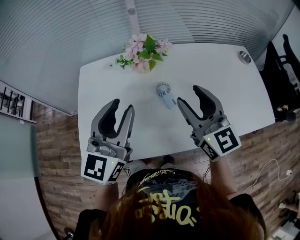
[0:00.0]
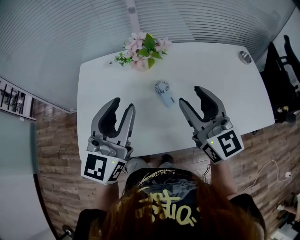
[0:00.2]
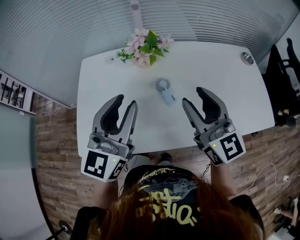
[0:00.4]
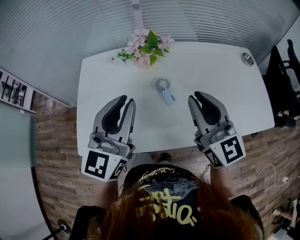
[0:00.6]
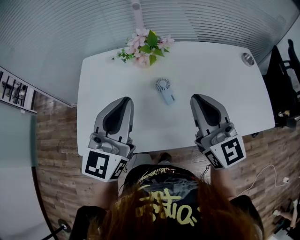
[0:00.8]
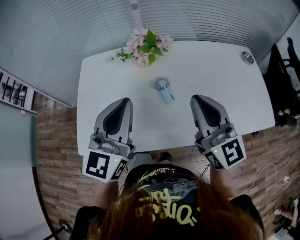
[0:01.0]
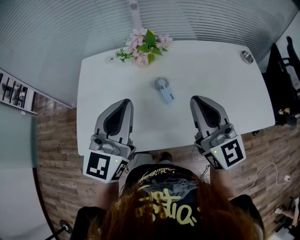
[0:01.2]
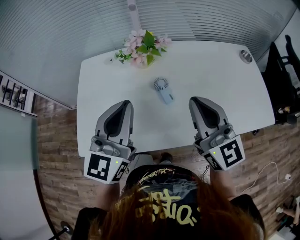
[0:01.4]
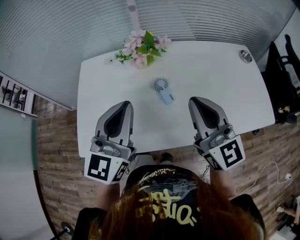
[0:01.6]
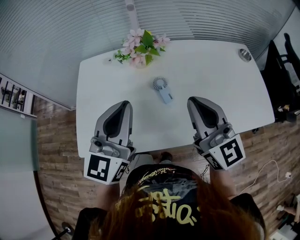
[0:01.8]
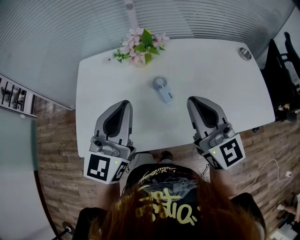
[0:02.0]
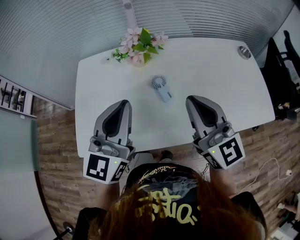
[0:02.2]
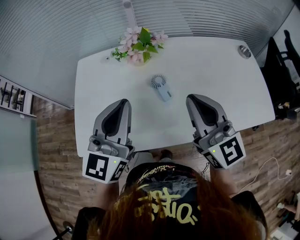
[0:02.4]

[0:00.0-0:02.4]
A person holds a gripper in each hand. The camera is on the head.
0:00.0 to 0:01.2: The right gripper changes place by roughly 5 cm, and closes its fingers.
0:01.2 to 0:02.4: Neither gripper changes place.

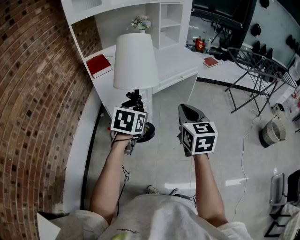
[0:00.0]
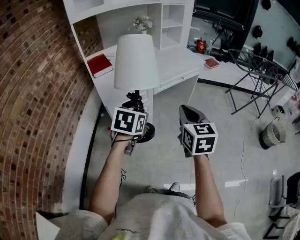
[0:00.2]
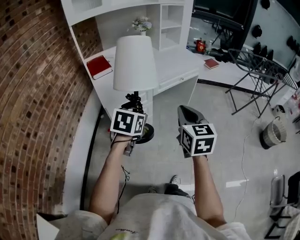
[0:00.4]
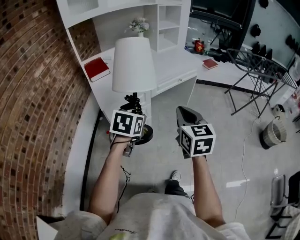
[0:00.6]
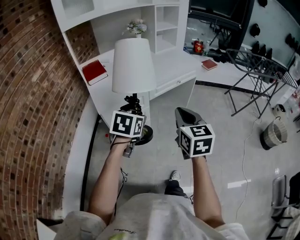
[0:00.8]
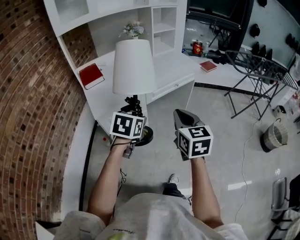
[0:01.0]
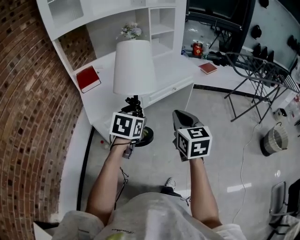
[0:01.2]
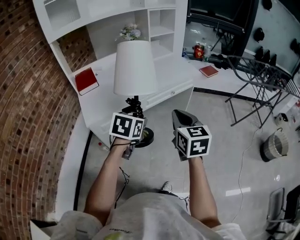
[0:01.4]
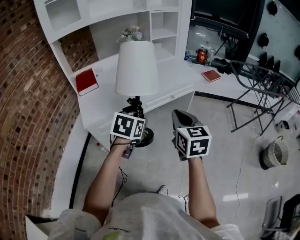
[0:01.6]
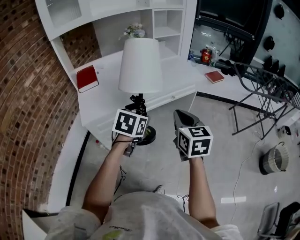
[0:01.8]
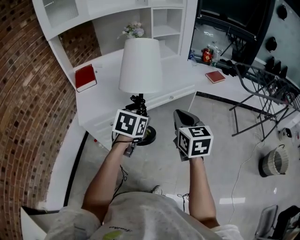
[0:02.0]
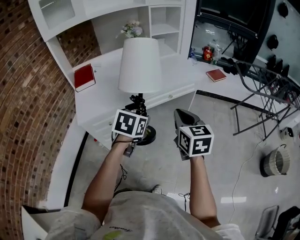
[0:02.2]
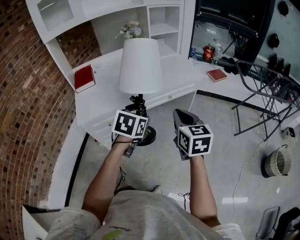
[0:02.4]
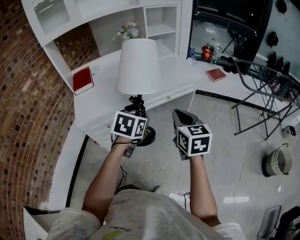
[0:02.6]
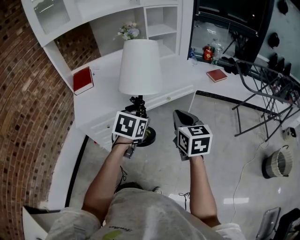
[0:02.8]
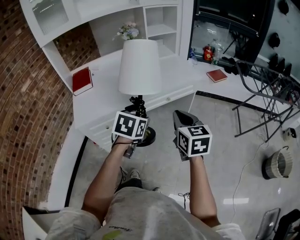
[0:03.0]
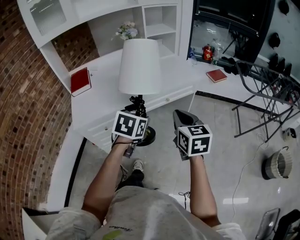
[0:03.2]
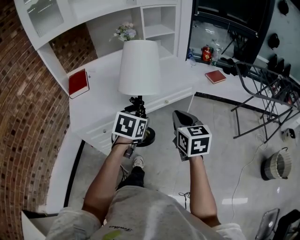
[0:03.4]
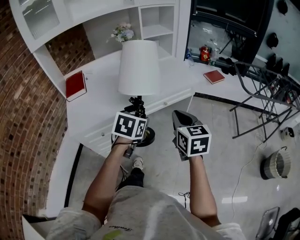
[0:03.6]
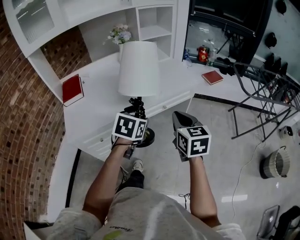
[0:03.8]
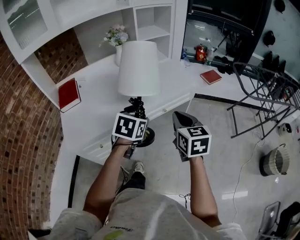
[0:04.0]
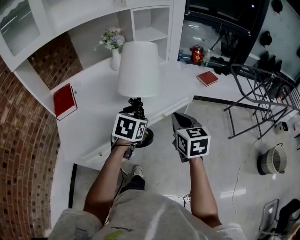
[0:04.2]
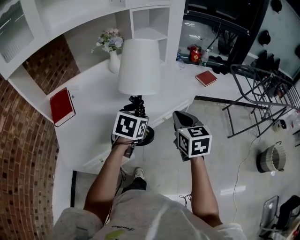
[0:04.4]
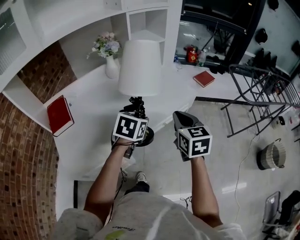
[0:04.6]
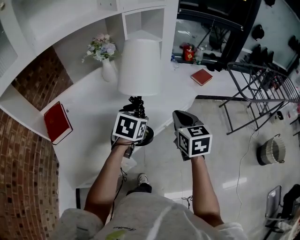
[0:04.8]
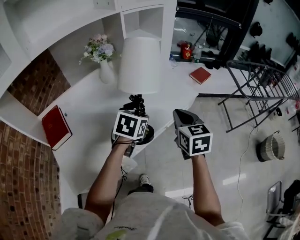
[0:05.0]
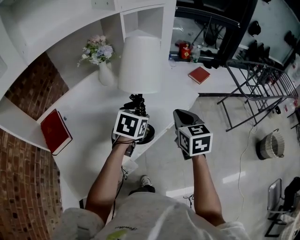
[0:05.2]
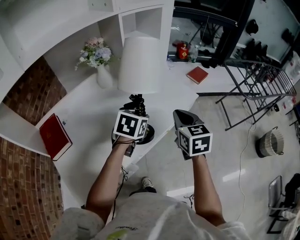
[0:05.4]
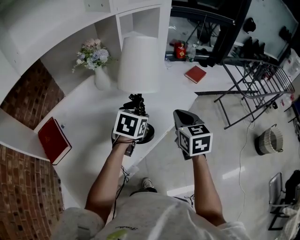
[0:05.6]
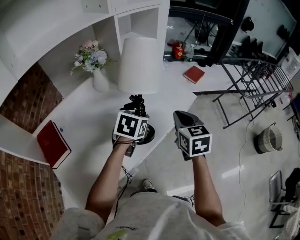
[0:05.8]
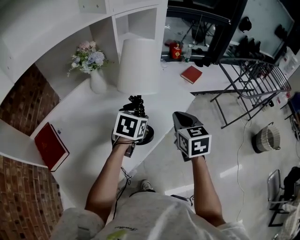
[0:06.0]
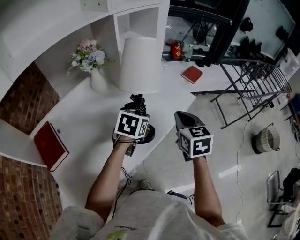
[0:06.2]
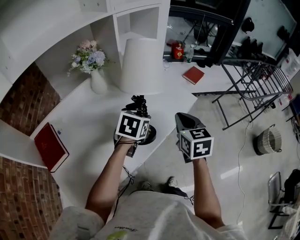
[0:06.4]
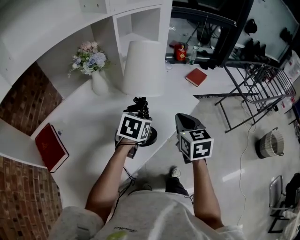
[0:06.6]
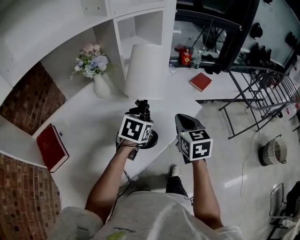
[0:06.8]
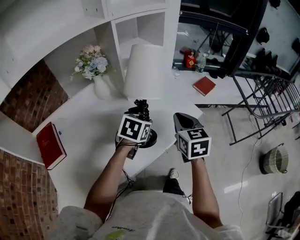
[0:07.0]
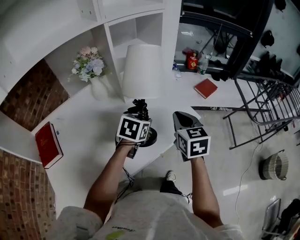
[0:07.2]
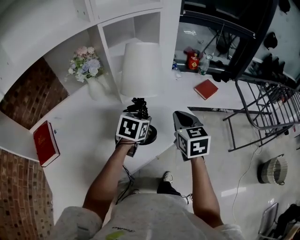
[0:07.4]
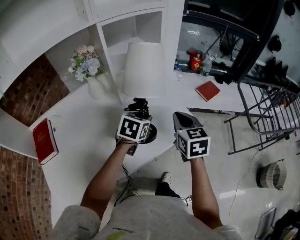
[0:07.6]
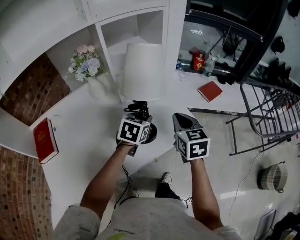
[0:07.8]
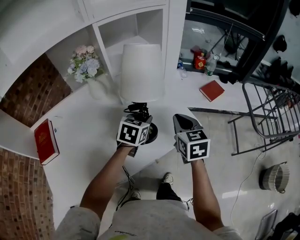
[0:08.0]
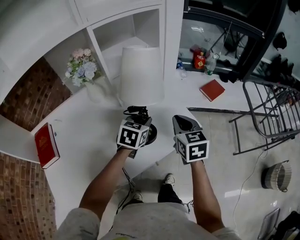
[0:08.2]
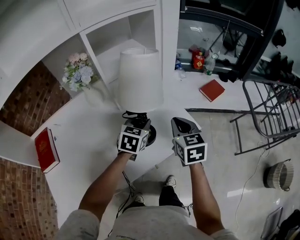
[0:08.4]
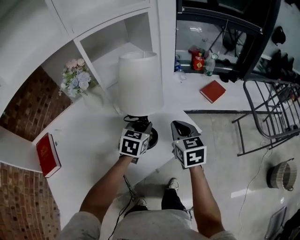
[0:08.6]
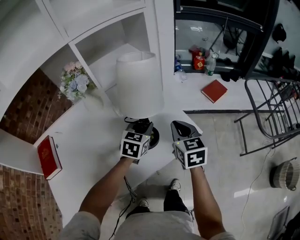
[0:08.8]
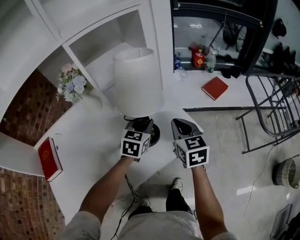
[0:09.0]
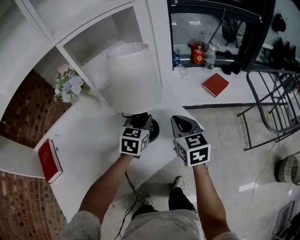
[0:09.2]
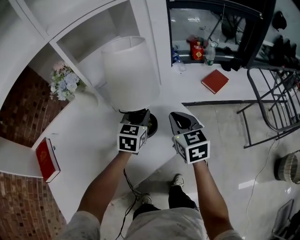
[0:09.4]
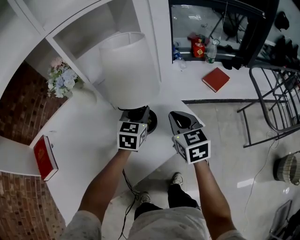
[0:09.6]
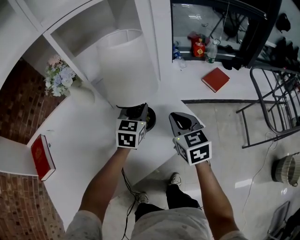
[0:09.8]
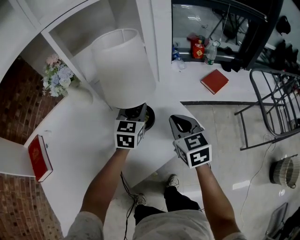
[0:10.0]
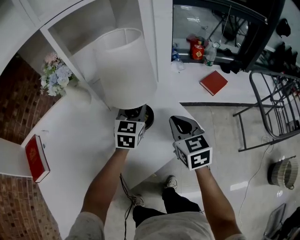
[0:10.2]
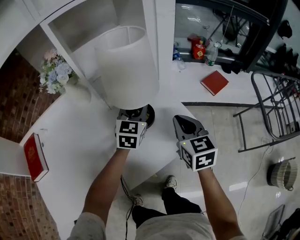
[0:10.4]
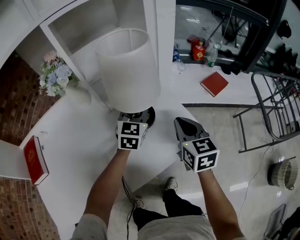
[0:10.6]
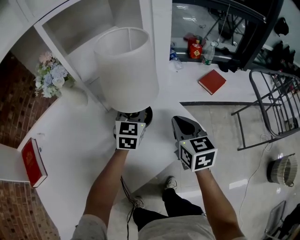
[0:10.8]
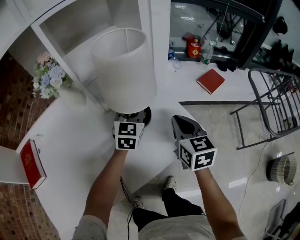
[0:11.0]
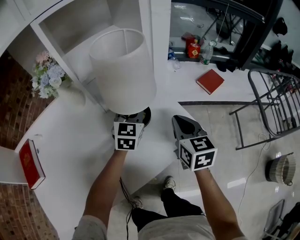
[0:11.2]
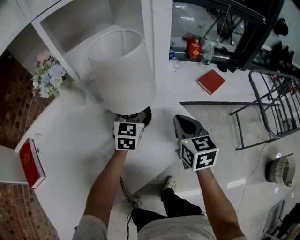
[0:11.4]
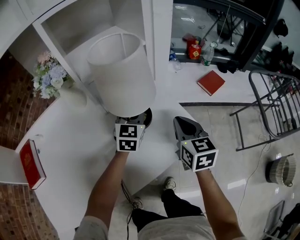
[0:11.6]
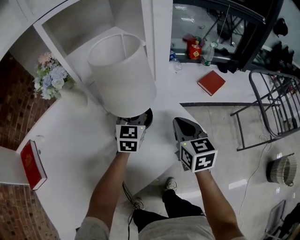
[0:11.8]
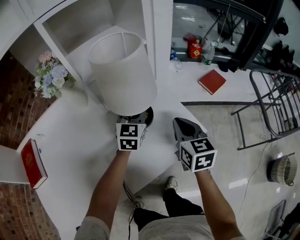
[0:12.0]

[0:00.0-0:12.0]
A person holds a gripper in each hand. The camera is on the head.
0:00.0 to 0:01.6: The grippers both shift forward and to the right by some 20 cm.
0:01.6 to 0:03.0: Both grippers move to the right and forward, about 10 cm.
0:03.0 to 0:04.4: The grippers both shift forward by roughly 20 cm.
0:04.4 to 0:06.0: The two grippers go some 15 cm forward.
0:06.0 to 0:07.6: The right gripper is displaced forward by approximately 15 cm. Meanwhile the left gripper goes approximately 15 cm forward and to the right.
0:07.6 to 0:09.0: The grippers both shift forward by roughly 5 cm.
0:09.0 to 0:10.4: The left gripper is displaced forward by roughly 5 cm.
0:10.4 to 0:12.0: There are only small adjustments of the grippers.

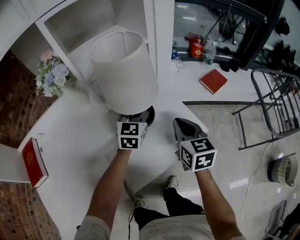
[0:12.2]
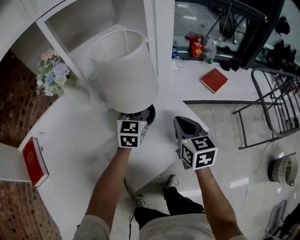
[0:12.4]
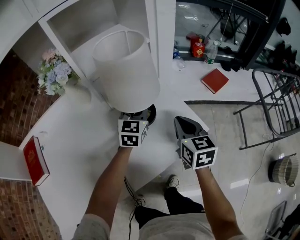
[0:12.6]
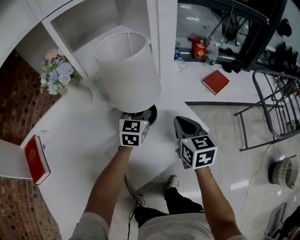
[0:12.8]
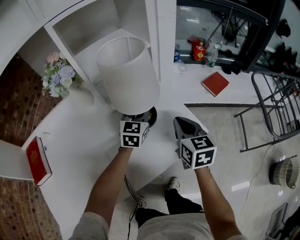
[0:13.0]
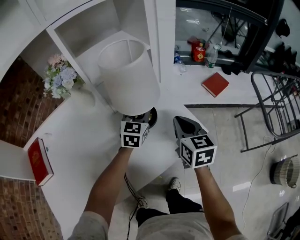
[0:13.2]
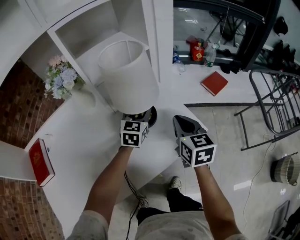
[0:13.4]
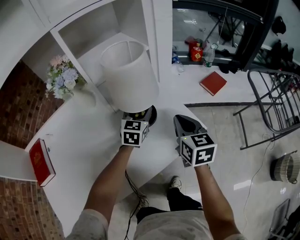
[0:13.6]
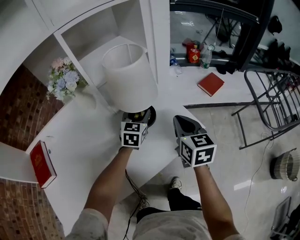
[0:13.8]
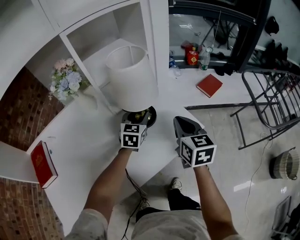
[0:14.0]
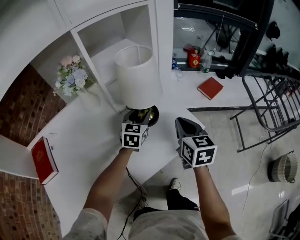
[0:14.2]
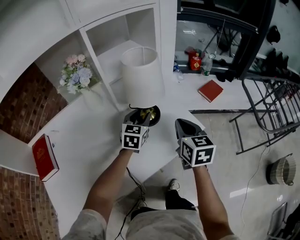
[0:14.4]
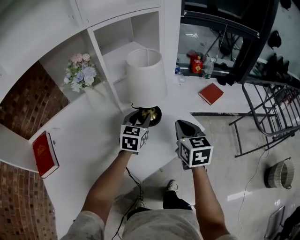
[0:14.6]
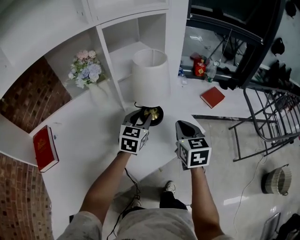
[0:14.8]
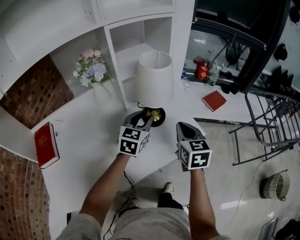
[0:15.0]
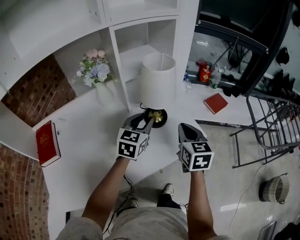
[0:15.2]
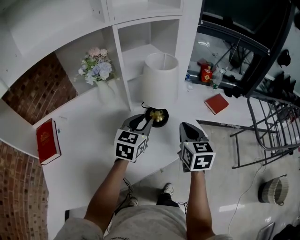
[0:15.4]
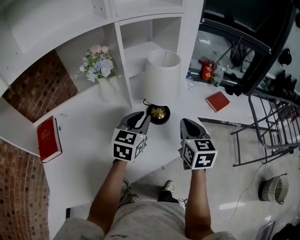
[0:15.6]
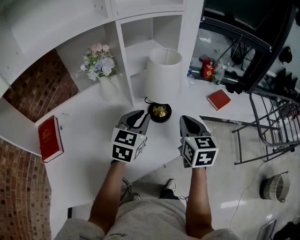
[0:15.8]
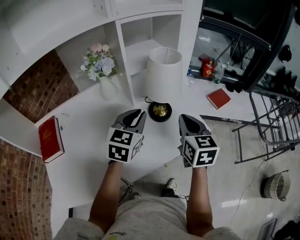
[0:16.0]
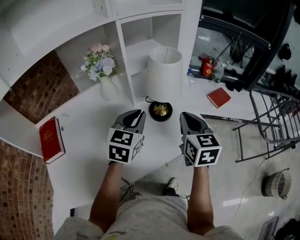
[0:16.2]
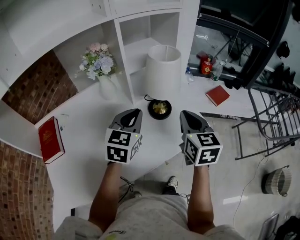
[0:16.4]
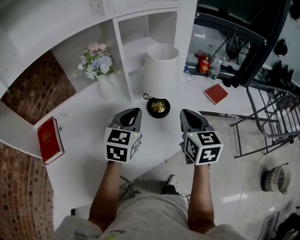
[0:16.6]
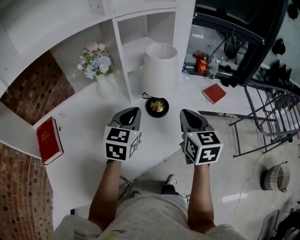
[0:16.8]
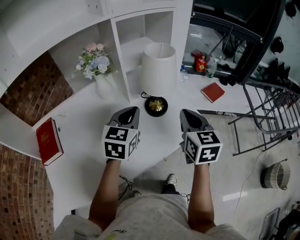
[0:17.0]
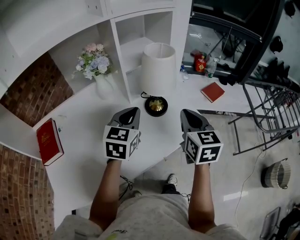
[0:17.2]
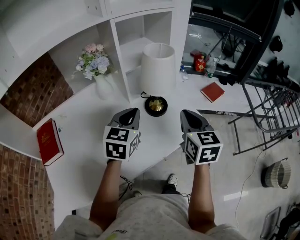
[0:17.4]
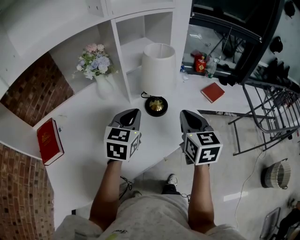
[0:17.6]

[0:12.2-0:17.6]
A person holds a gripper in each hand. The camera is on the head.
0:12.2 to 0:13.6: The left gripper opens.
0:13.6 to 0:15.0: The left gripper moves backward and upward, roughly 15 cm; the right gripper heads backward and upward, covering approximately 5 cm.
0:15.0 to 0:16.2: The left gripper moves upward and backward, some 10 cm, and closes its fingers; the right gripper goes roughly 5 cm upward.
0:16.2 to 0:17.6: The grippers make only small movements.

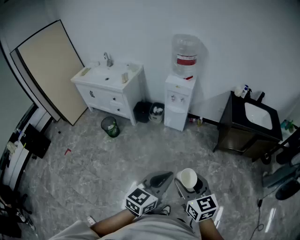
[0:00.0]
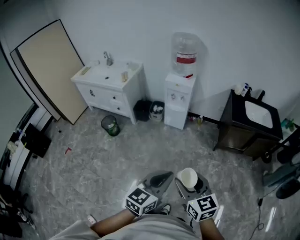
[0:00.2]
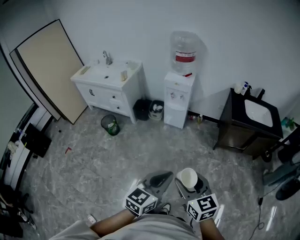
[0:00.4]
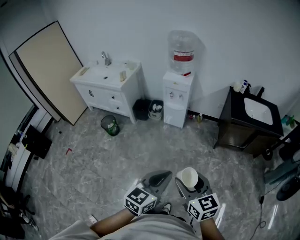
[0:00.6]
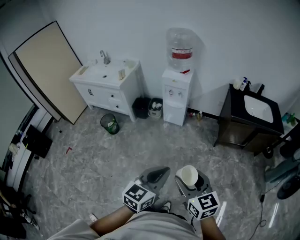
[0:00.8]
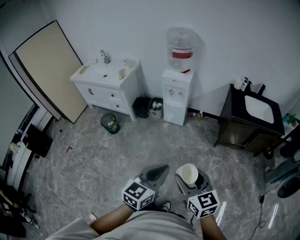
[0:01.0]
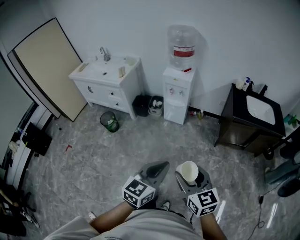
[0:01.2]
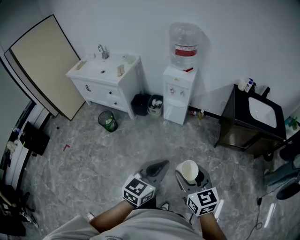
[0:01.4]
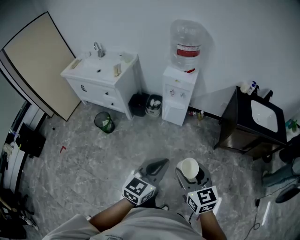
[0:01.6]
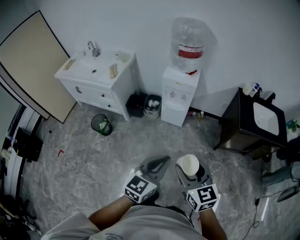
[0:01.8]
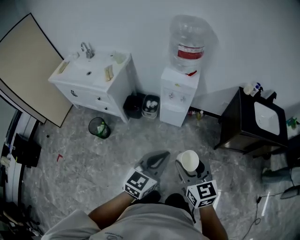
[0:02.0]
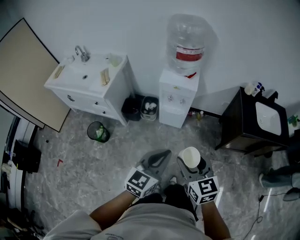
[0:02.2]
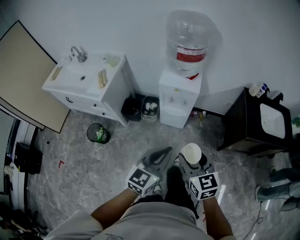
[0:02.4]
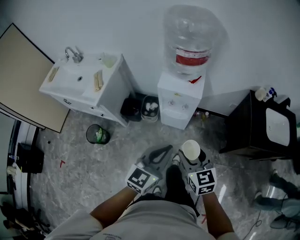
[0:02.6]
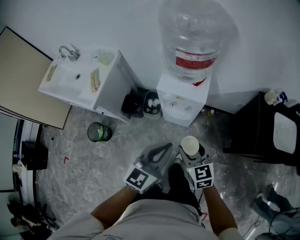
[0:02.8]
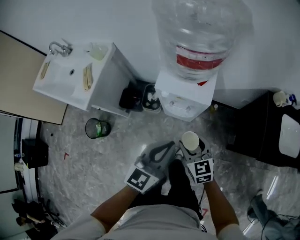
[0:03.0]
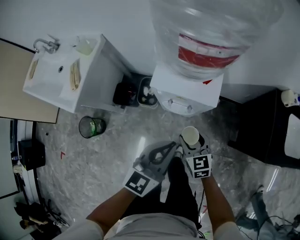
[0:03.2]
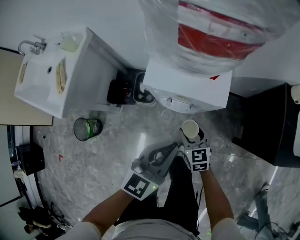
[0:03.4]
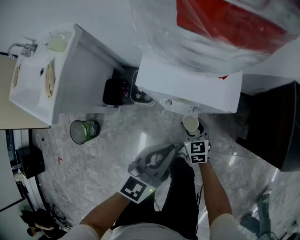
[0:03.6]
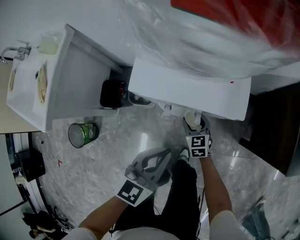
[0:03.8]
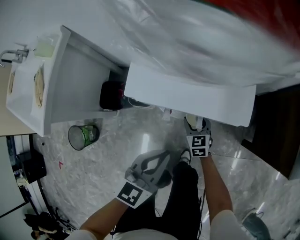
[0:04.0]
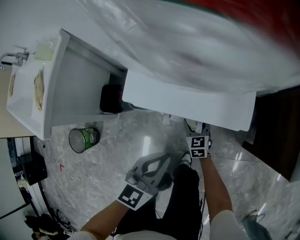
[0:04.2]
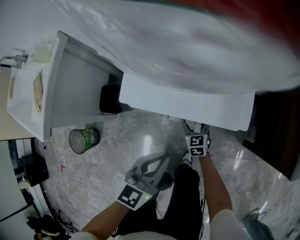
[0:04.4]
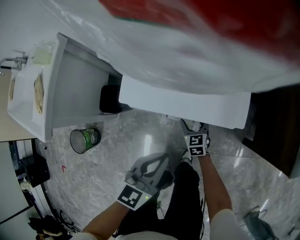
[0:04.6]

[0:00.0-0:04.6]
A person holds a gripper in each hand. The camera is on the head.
0:00.0 to 0:01.6: Both grippers travel together forward, some 20 cm.
0:01.6 to 0:03.0: The pair of grippers is taken forward, about 50 cm.
0:03.0 to 0:04.6: The left gripper moves downward, roughly 30 cm, while the right gripper travels downward and forward by roughly 40 cm.
